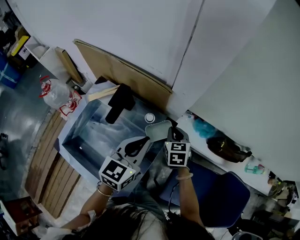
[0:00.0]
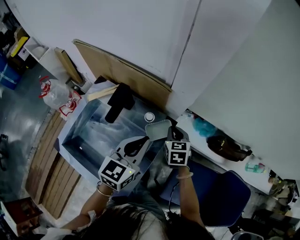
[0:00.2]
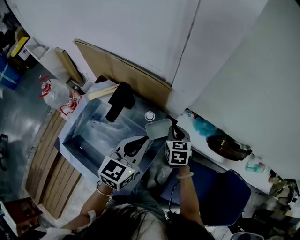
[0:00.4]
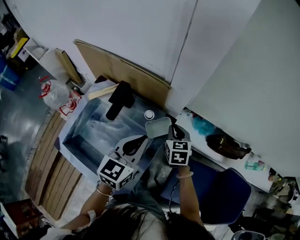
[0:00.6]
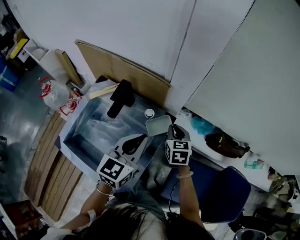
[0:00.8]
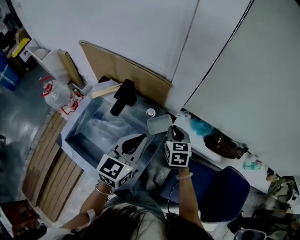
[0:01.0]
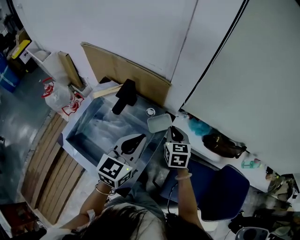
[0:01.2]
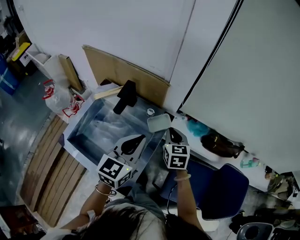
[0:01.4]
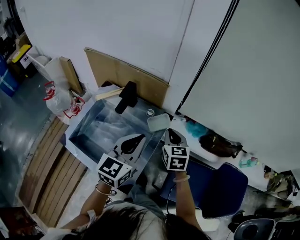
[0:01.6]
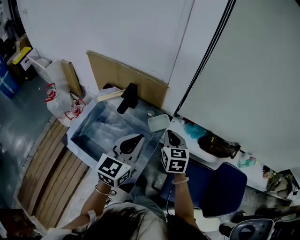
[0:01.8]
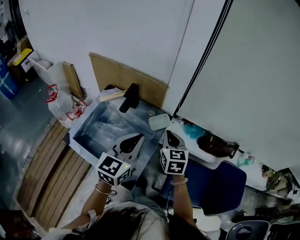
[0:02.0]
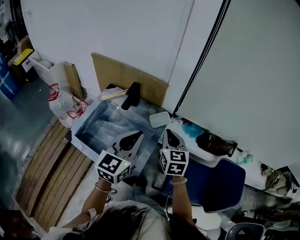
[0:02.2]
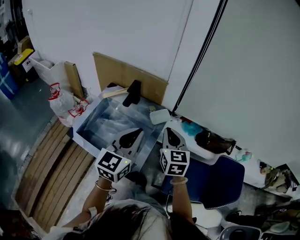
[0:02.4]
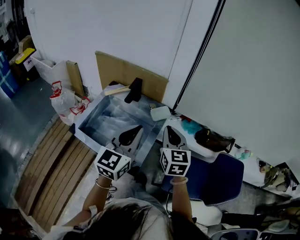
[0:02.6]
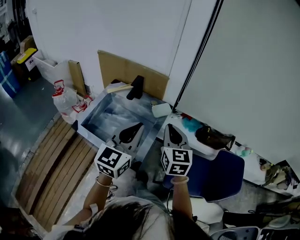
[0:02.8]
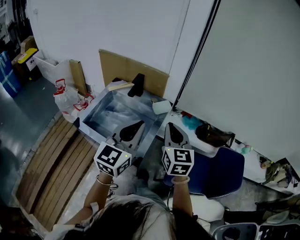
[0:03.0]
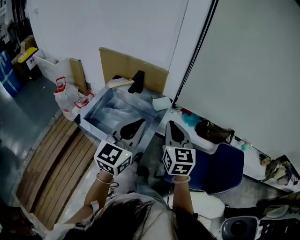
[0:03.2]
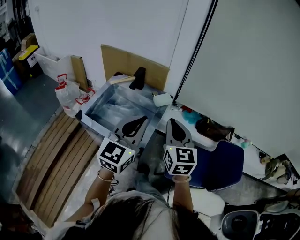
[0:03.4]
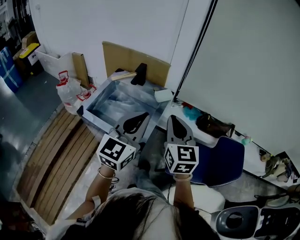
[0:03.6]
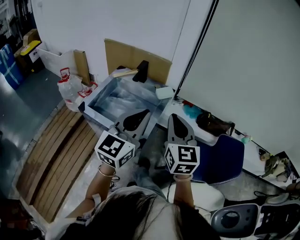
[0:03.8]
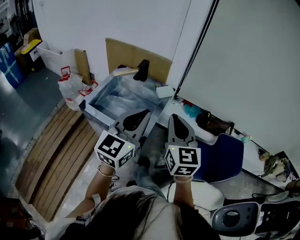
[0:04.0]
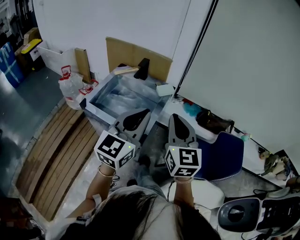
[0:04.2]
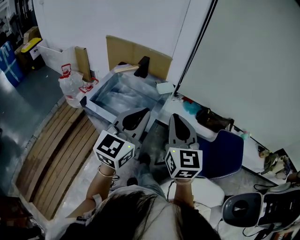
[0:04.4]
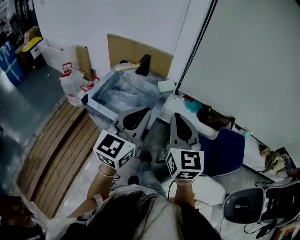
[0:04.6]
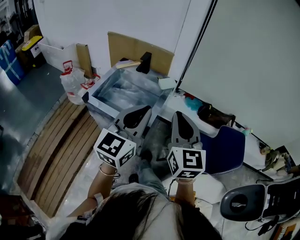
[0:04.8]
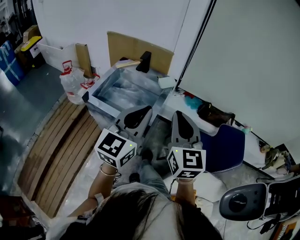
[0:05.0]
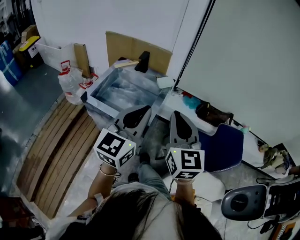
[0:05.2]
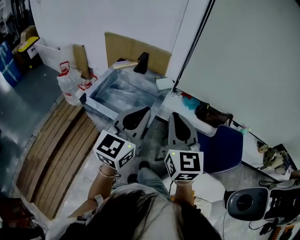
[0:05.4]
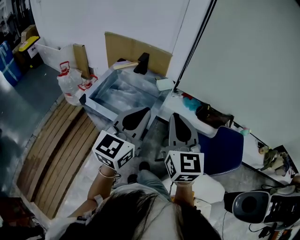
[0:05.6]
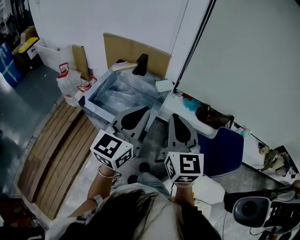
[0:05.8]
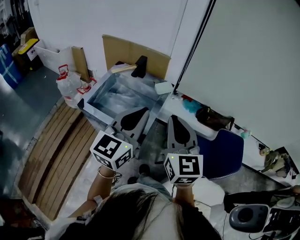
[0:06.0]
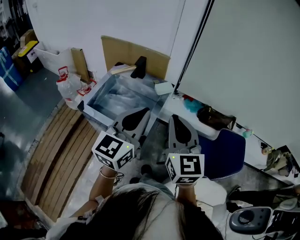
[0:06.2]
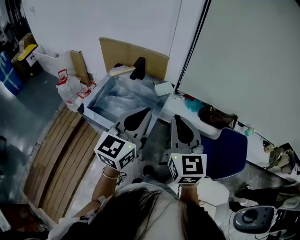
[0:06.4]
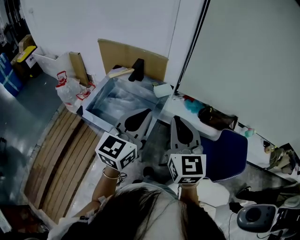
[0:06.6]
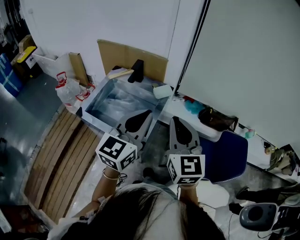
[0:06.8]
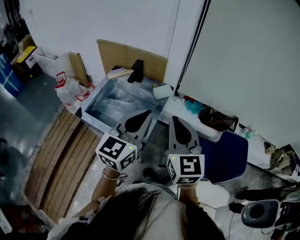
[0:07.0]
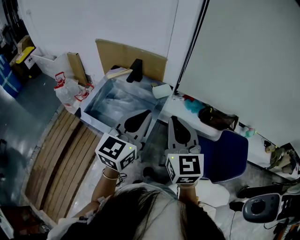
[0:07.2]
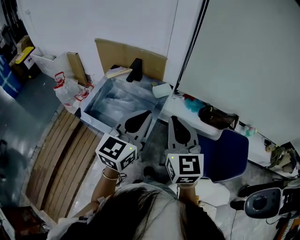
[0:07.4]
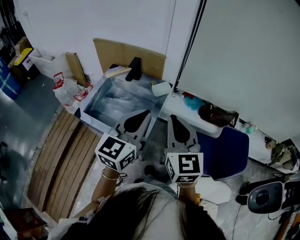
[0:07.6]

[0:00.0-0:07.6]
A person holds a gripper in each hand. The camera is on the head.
0:00.0 to 0:01.6: Both grippers travel together backward and upward, about 15 cm.
0:01.6 to 0:03.0: The grippers both shift backward and upward by some 20 cm.
0:03.0 to 0:04.6: The left gripper shifts approximately 10 cm backward. Meanwhile the right gripper is displaced backward and upward by some 15 cm.
0:04.6 to 0:06.0: The grippers stay close to where they were, moving slightly.
0:06.0 to 0:07.6: Both grippers move forward, roughly 5 cm.

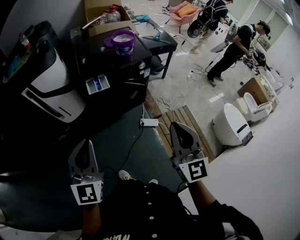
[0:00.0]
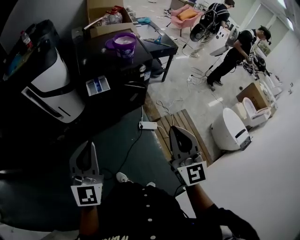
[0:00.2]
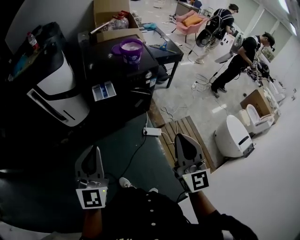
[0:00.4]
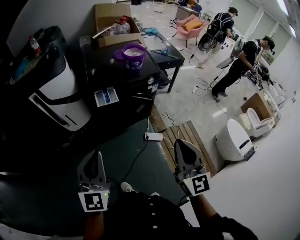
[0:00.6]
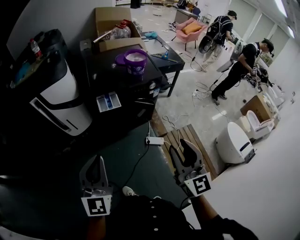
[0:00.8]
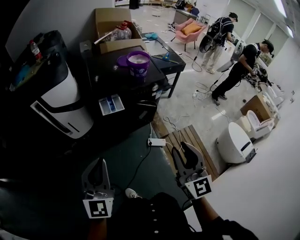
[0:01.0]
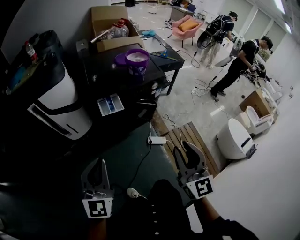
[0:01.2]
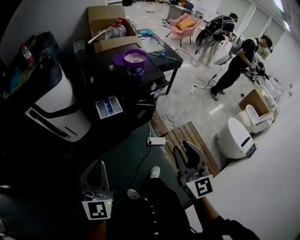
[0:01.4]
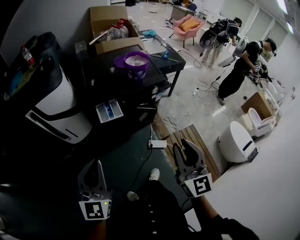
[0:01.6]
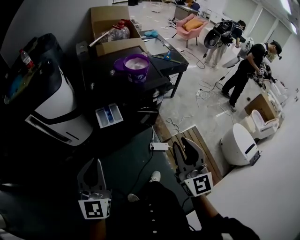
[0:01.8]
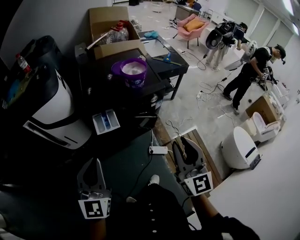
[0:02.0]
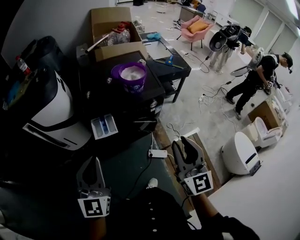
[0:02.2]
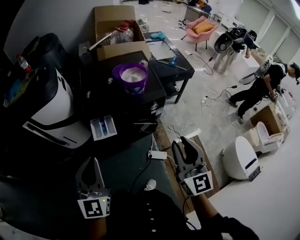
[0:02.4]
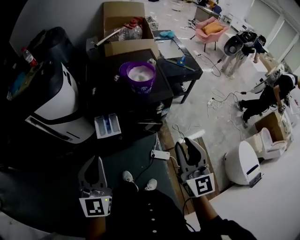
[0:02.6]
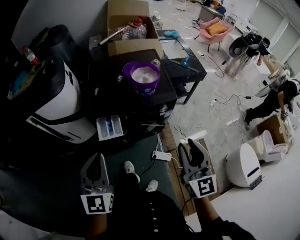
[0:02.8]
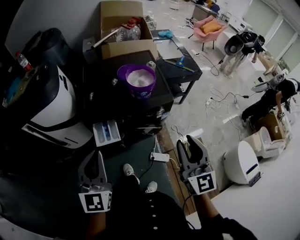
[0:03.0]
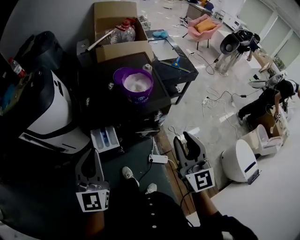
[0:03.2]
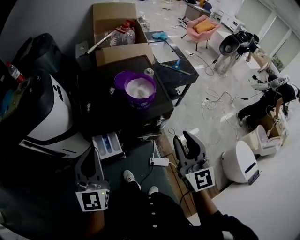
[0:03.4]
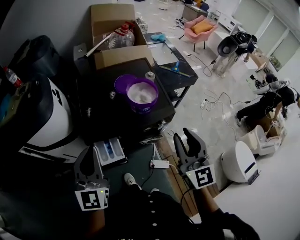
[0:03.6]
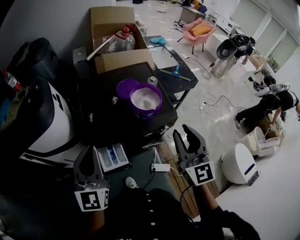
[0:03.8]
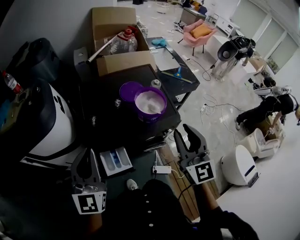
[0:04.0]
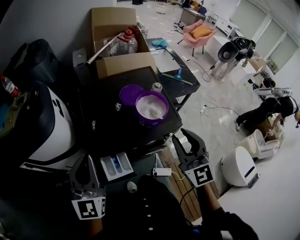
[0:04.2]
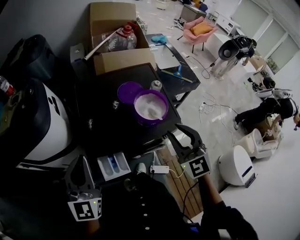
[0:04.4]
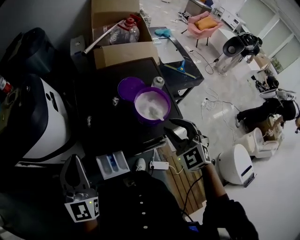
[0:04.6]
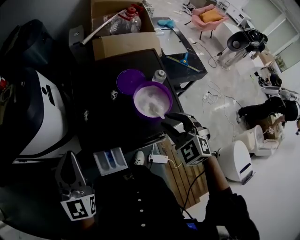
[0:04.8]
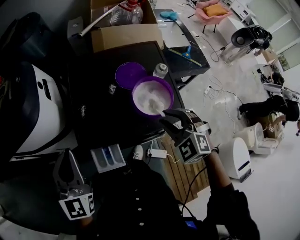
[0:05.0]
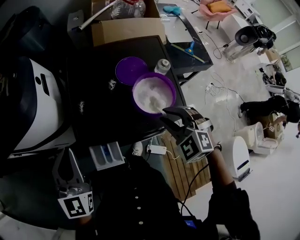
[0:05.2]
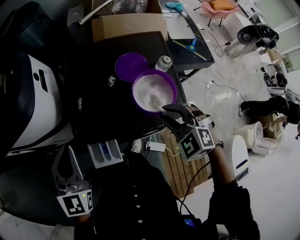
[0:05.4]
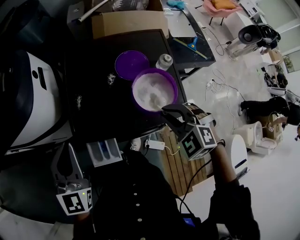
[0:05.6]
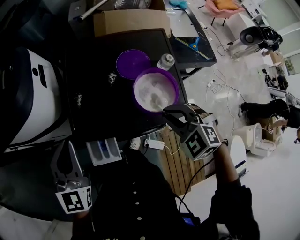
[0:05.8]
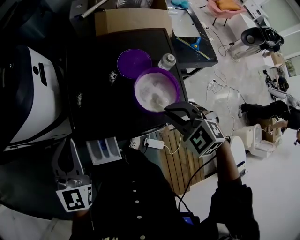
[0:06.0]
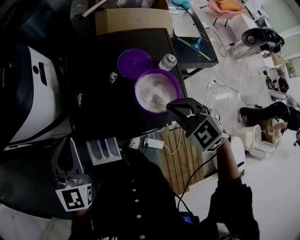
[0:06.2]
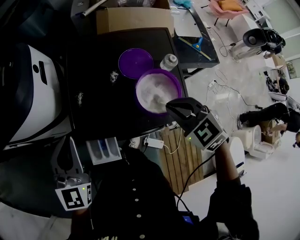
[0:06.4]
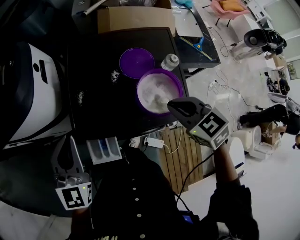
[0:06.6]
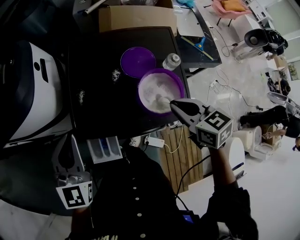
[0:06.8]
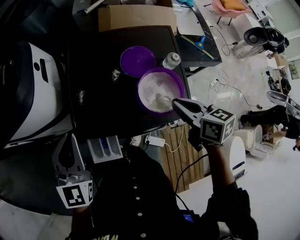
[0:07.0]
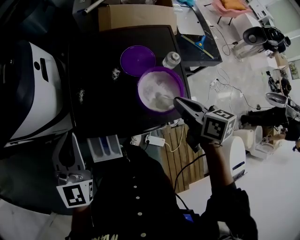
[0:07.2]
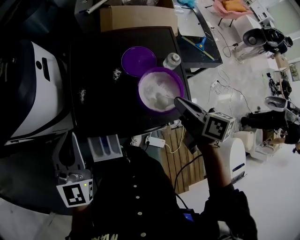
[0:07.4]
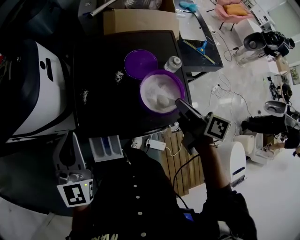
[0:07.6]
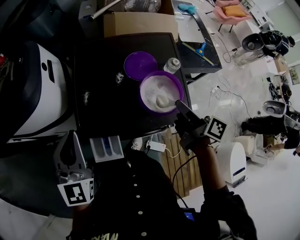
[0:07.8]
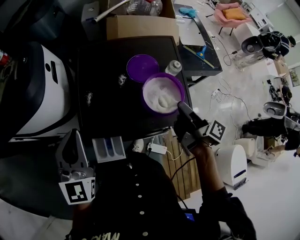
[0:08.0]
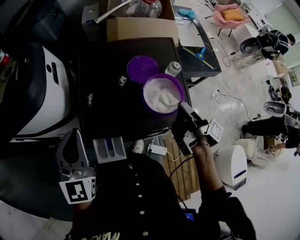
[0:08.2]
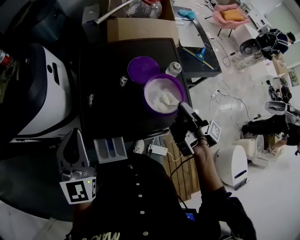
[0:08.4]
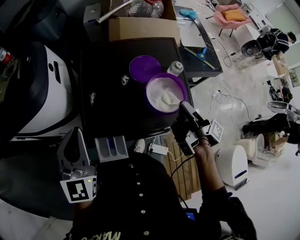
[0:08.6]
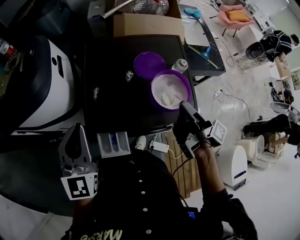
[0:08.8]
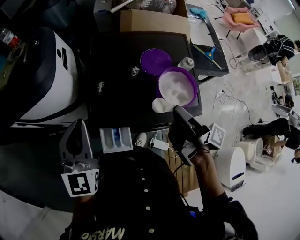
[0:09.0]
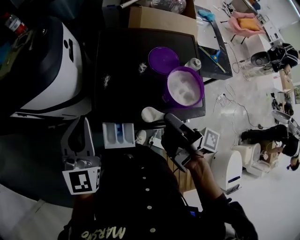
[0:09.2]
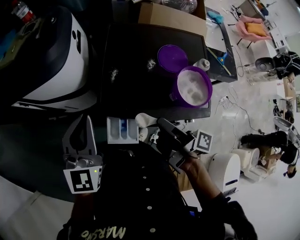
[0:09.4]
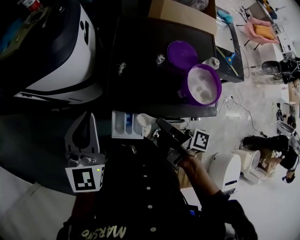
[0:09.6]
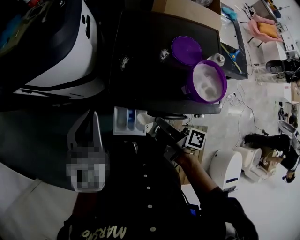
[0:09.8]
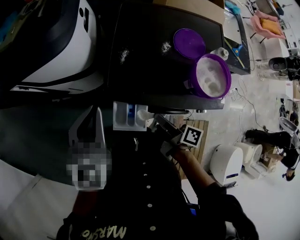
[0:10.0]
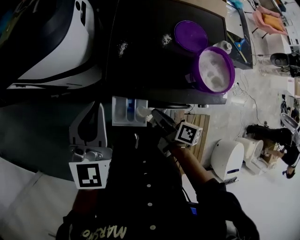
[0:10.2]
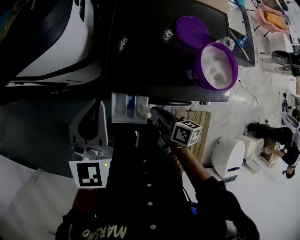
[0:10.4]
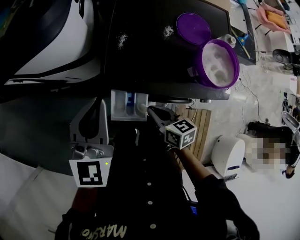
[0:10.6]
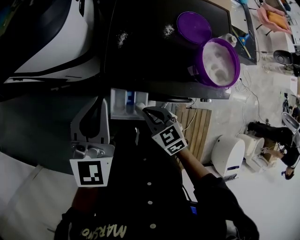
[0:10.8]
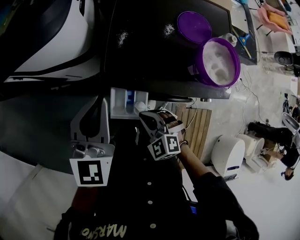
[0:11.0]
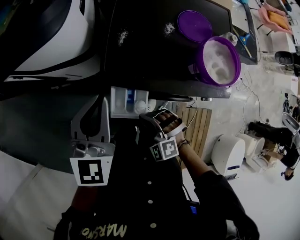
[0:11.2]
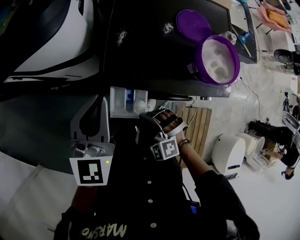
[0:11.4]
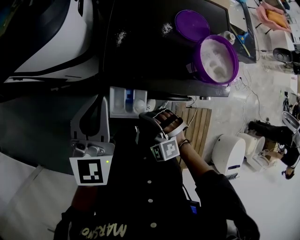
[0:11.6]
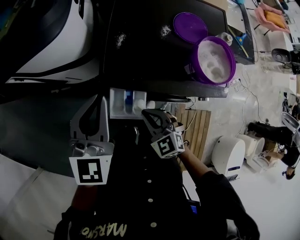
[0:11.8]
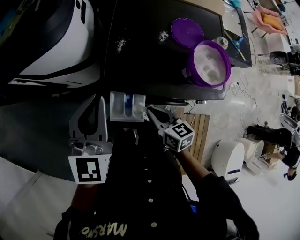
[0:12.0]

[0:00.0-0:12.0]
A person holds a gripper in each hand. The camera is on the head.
0:00.0 to 0:01.6: Both grippers travel together forward and to the left, roughly 10 cm.
0:01.6 to 0:03.0: Both grippers travel together forward and to the right, some 20 cm.
0:03.0 to 0:04.4: The right gripper travels forward by approximately 20 cm, and rotates approximately 30 degrees. Meanwhile the left gripper heads forward and to the left, covering approximately 20 cm.
0:04.4 to 0:06.0: The right gripper travels downward and forward by about 15 cm, and points its fingers roughly 40 degrees further downward; the left gripper travels forward and downward by approximately 10 cm.
0:06.0 to 0:07.6: The right gripper is displaced to the right by roughly 5 cm, and rolls clockwise, seen from behind, by approximately 90 degrees.
0:07.6 to 0:09.0: The right gripper shifts approximately 10 cm to the left, and swivels about 40 degrees.
0:09.0 to 0:10.4: The right gripper heads downward and to the left, covering some 25 cm, and turns by roughly 50 degrees. Meanwhile the left gripper travels downward by about 5 cm.
0:10.4 to 0:12.0: The right gripper travels to the left and back again, approximately 10 cm each way, and turns by approximately 30 degrees.

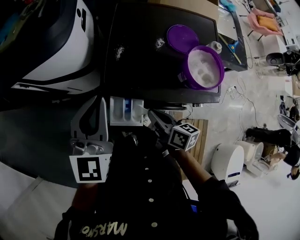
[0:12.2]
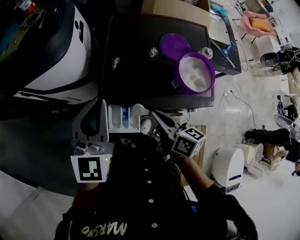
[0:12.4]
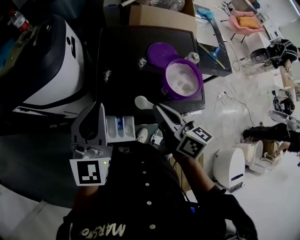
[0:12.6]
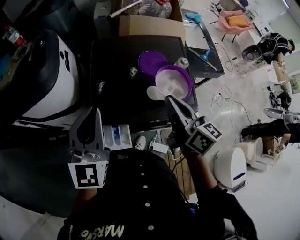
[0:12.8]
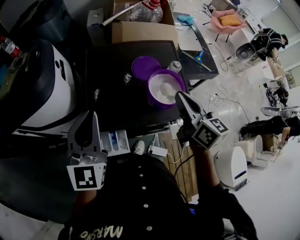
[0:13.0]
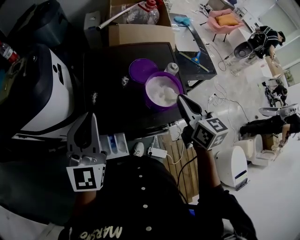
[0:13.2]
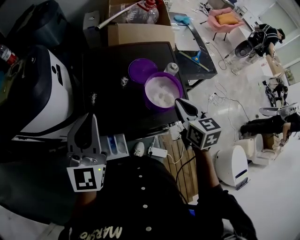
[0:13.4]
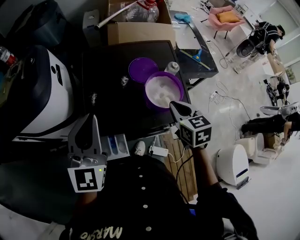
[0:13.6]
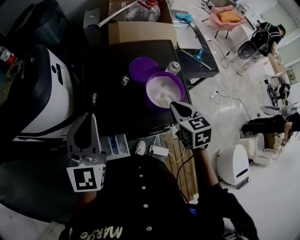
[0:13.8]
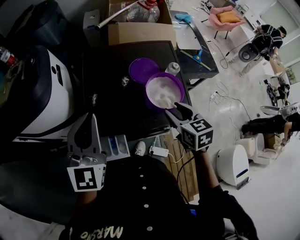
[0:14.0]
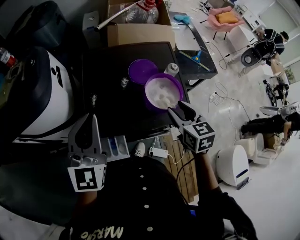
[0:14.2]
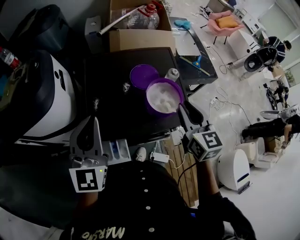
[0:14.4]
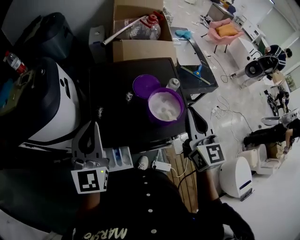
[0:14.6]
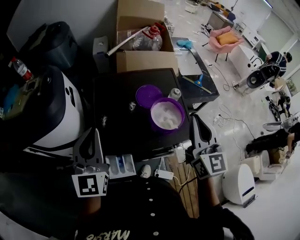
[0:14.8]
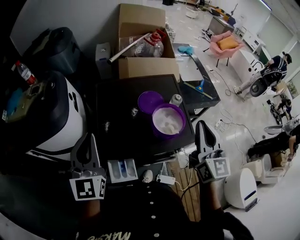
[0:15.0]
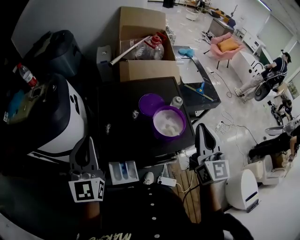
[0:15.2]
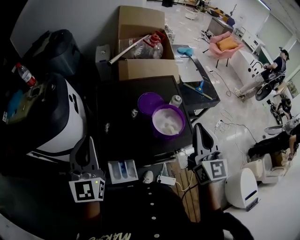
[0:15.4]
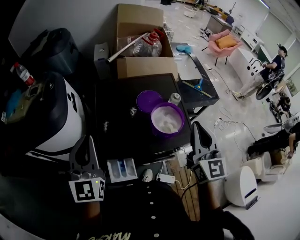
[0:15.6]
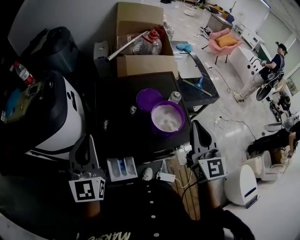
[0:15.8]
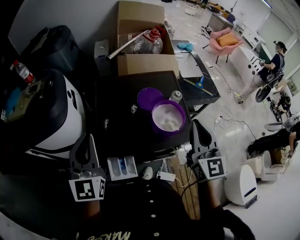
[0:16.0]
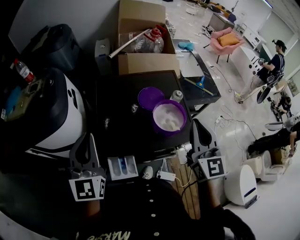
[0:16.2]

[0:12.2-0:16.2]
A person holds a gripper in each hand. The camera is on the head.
0:12.2 to 0:13.6: The left gripper heads to the right and upward, covering some 10 cm. Meanwhile the right gripper travels to the right, upward and forward by some 25 cm, and swivels about 50 degrees.
0:13.6 to 0:14.8: The right gripper travels upward by approximately 15 cm, angles its fingers upward, by some 40 degrees, and opens, then closes again.
0:14.8 to 0:16.2: The grippers move only a little.
